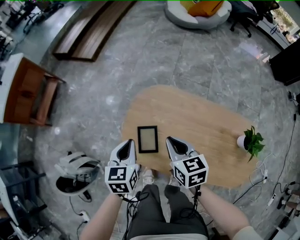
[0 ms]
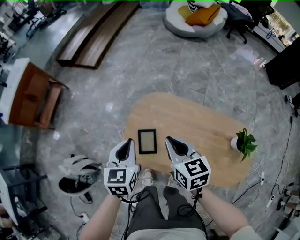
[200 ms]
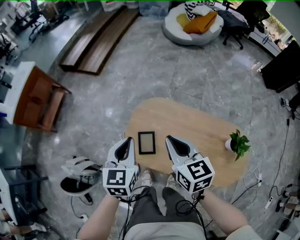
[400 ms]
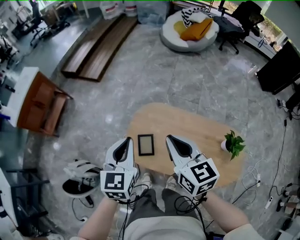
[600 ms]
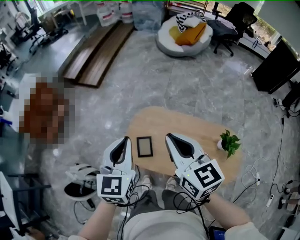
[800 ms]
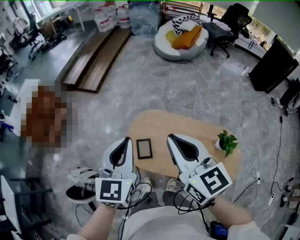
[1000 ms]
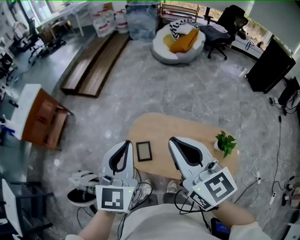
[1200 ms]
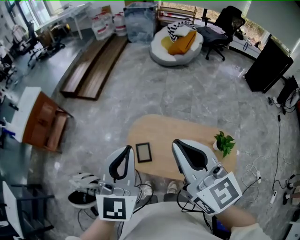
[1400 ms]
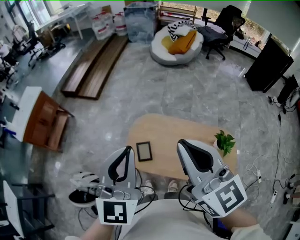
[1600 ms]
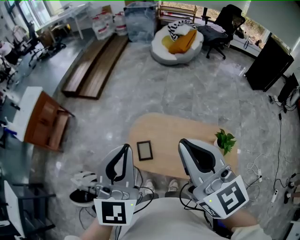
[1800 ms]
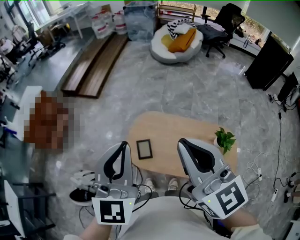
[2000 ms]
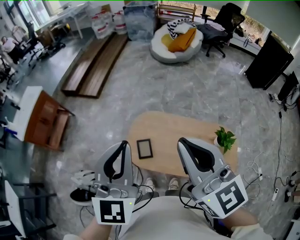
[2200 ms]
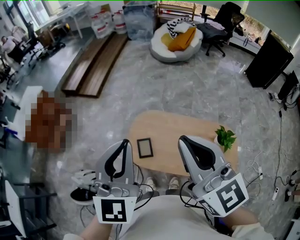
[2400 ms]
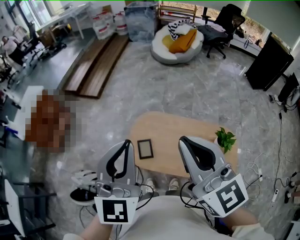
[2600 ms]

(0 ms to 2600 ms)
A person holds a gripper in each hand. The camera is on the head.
0 ms - 1200 ms: The grippers both shift upward by roughly 40 cm. The left gripper tips its fingers upward by some 30 degrees, while the right gripper tilts its fingers approximately 30 degrees upward.
1200 ms - 2600 ms: The two grippers go roughly 5 cm upward.

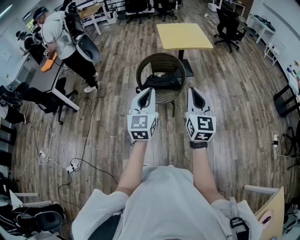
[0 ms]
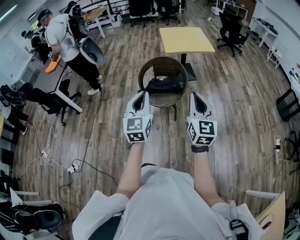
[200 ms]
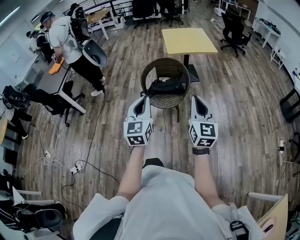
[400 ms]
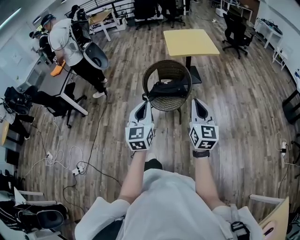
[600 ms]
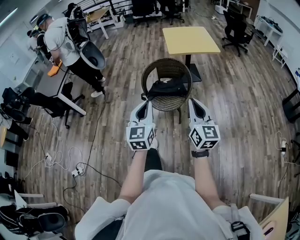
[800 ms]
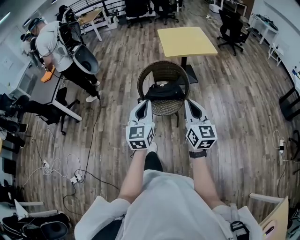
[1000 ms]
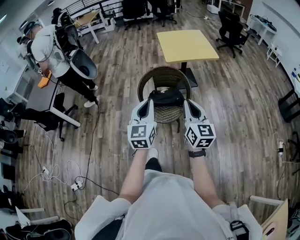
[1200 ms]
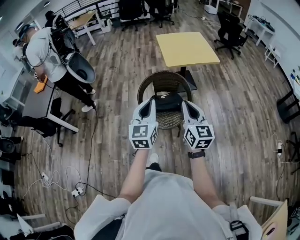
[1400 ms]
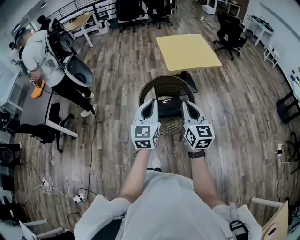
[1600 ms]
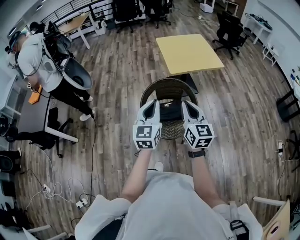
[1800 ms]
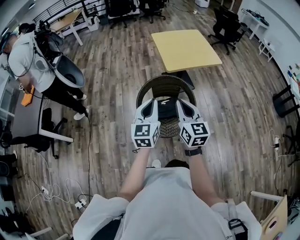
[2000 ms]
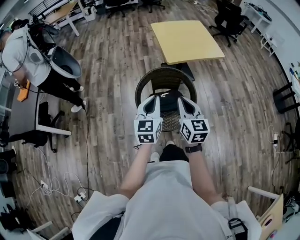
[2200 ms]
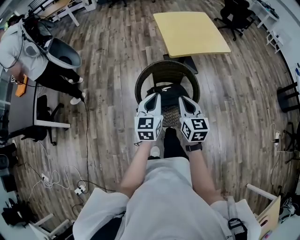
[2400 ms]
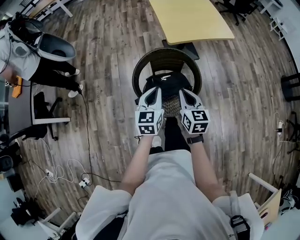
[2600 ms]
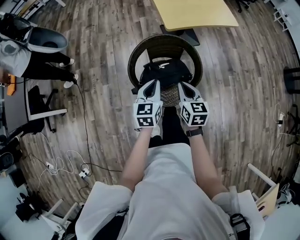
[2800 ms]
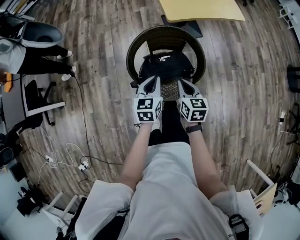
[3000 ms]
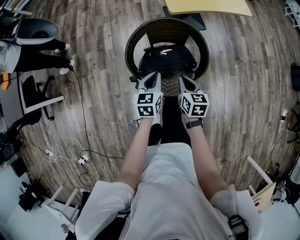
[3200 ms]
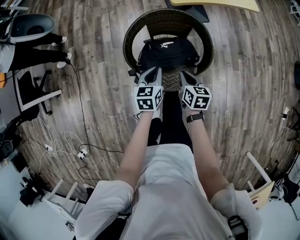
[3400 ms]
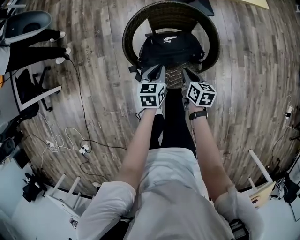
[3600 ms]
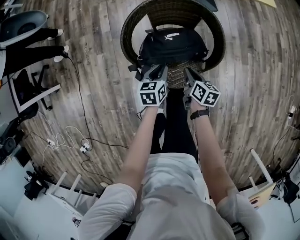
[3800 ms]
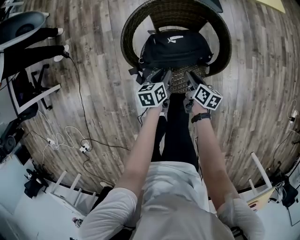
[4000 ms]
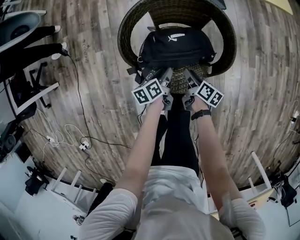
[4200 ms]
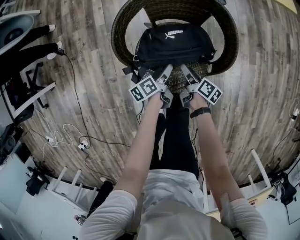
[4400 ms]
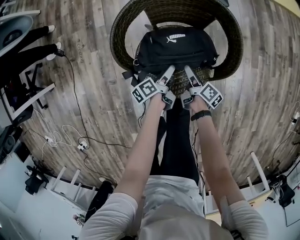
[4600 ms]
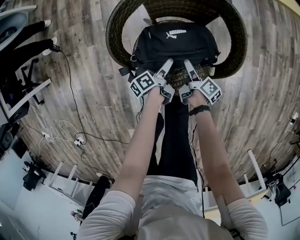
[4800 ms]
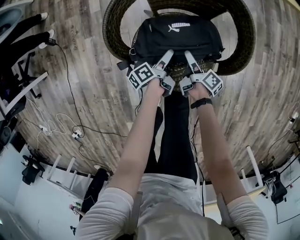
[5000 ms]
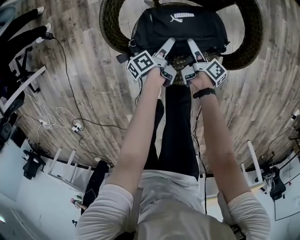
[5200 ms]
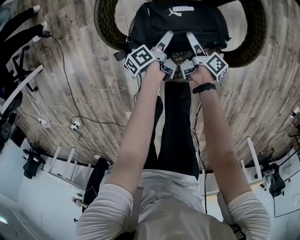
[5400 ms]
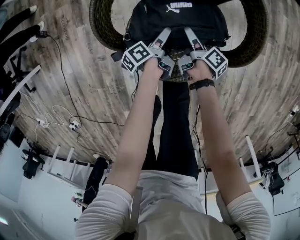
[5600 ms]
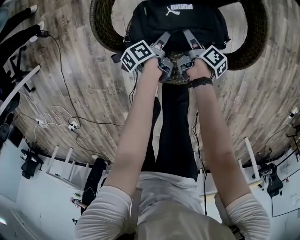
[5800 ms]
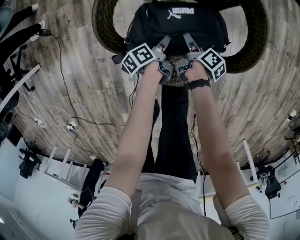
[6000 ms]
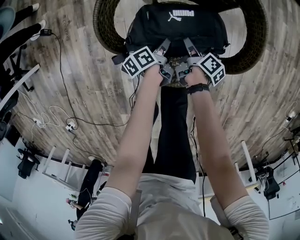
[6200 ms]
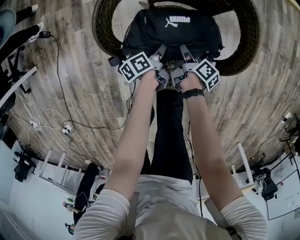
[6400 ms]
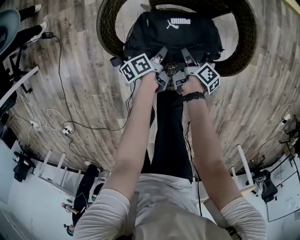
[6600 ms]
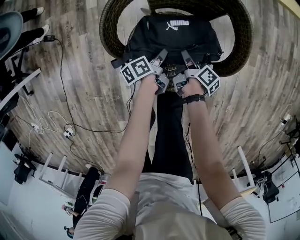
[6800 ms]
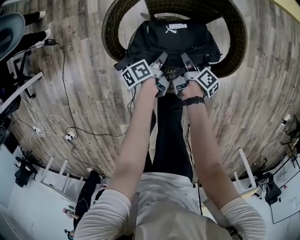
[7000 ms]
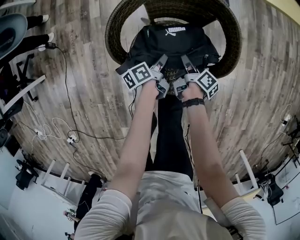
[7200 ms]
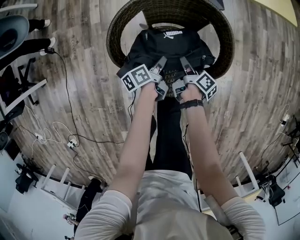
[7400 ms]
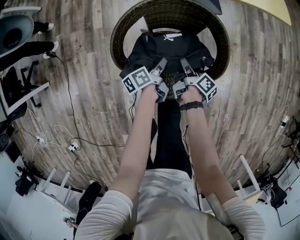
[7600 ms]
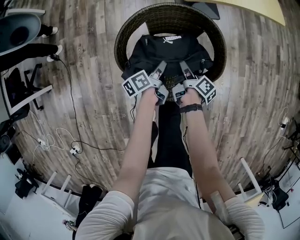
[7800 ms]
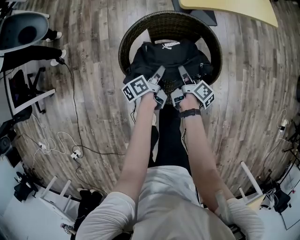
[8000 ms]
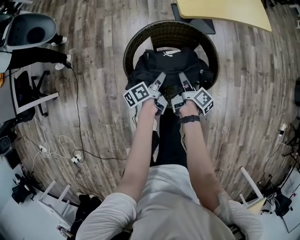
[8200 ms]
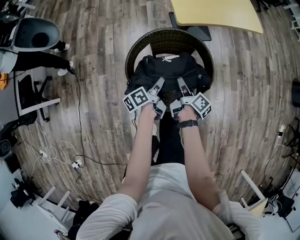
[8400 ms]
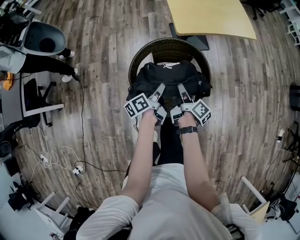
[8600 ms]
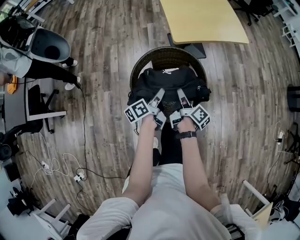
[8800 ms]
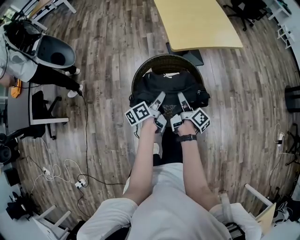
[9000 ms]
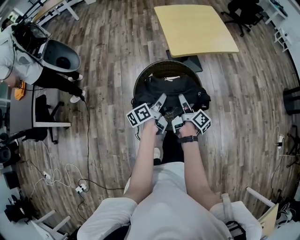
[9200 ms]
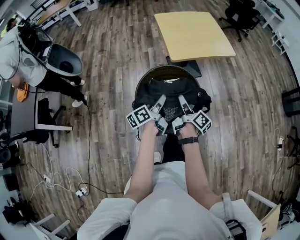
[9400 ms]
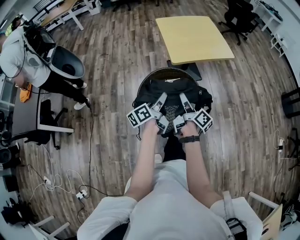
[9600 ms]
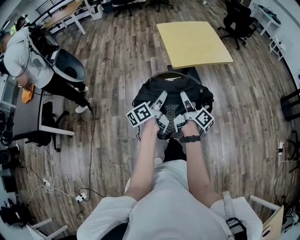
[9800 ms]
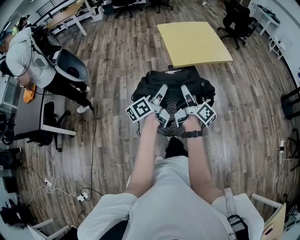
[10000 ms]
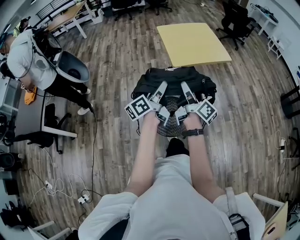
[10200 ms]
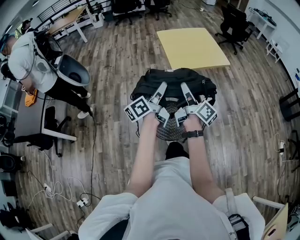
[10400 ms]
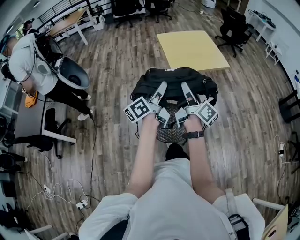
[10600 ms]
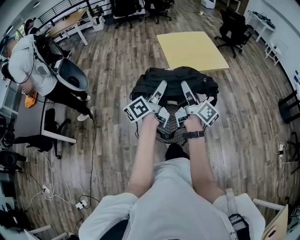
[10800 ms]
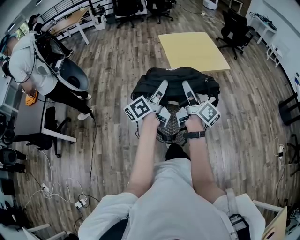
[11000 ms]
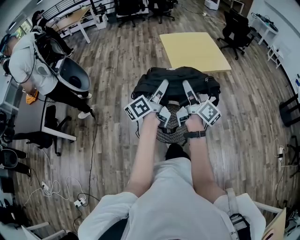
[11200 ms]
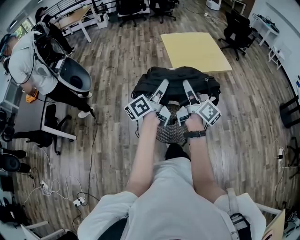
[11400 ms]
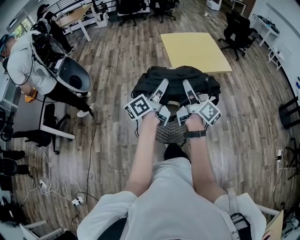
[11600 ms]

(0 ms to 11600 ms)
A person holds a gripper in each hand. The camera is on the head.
0 ms - 1400 ms: The grippers both shift forward by approximately 20 cm.
1400 ms - 2800 ms: The two grippers go about 30 cm downward and forward. The right gripper changes its angle by approximately 30 degrees; the left gripper changes its angle by about 30 degrees.
2800 ms - 4400 ms: Both grippers travel together downward, approximately 40 cm. The left gripper rotates around the line of its fingers by roughly 60 degrees, counterclockwise from behind, and opens. The right gripper twists roughly 60 degrees clockwise, seen from behind, and opens its fingers.
4400 ms - 5800 ms: The left gripper travels downward by some 10 cm; the right gripper goes some 10 cm downward and forward.
5800 ms - 7200 ms: Both grippers move upward, about 10 cm. The left gripper closes its fingers, while the right gripper closes.
7200 ms - 8800 ms: The grippers both shift upward by about 30 cm. The left gripper swivels approximately 20 degrees. The right gripper swivels approximately 20 degrees.
8800 ms - 10200 ms: Both grippers travel together upward, roughly 25 cm. The right gripper rotates about 30 degrees. The left gripper rotates some 30 degrees.
10200 ms - 11600 ms: Both grippers travel together upward, some 5 cm.

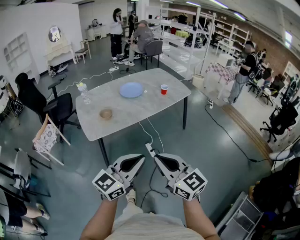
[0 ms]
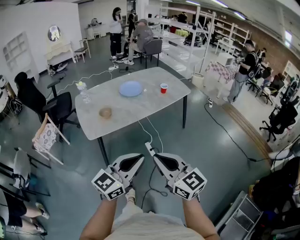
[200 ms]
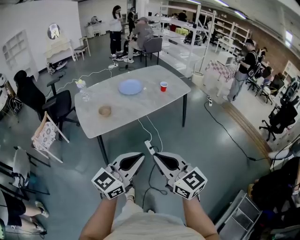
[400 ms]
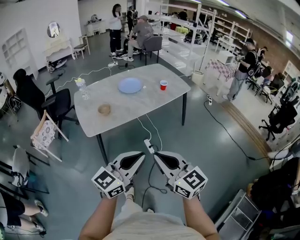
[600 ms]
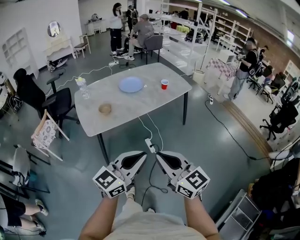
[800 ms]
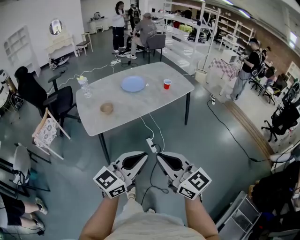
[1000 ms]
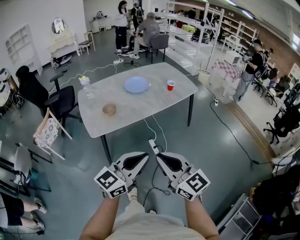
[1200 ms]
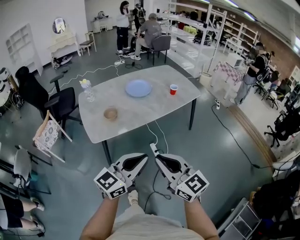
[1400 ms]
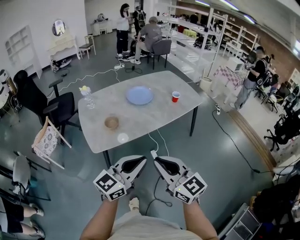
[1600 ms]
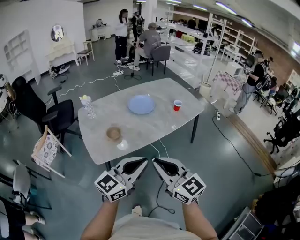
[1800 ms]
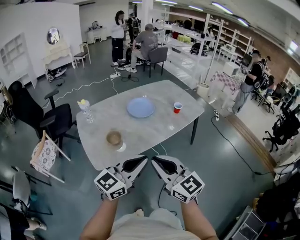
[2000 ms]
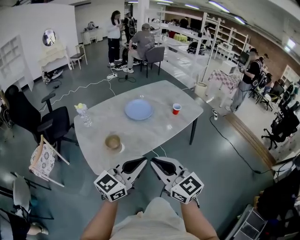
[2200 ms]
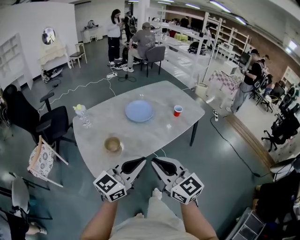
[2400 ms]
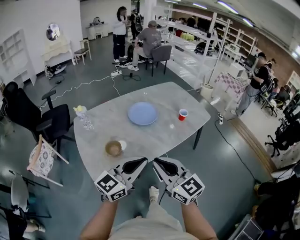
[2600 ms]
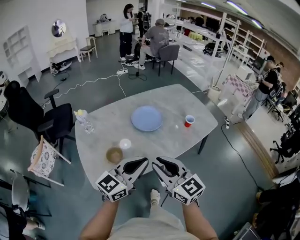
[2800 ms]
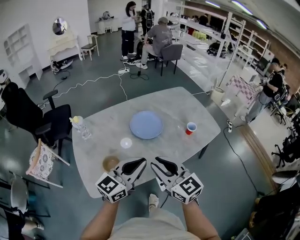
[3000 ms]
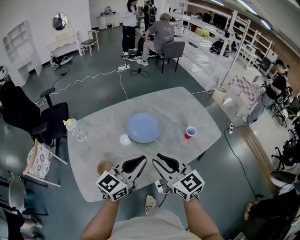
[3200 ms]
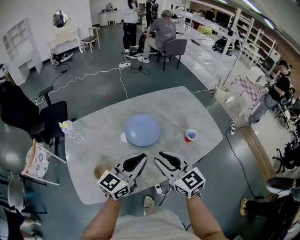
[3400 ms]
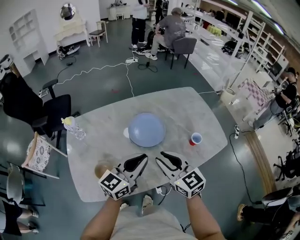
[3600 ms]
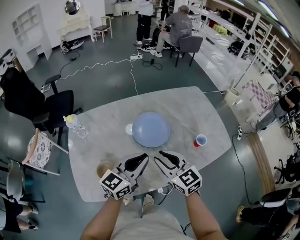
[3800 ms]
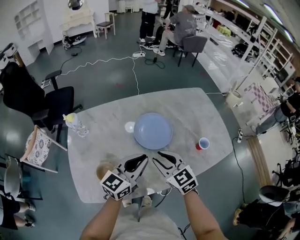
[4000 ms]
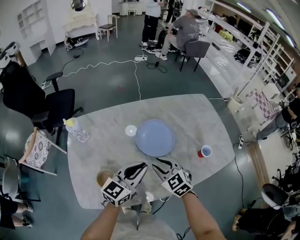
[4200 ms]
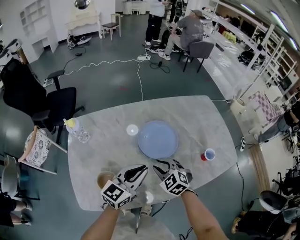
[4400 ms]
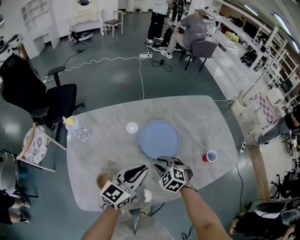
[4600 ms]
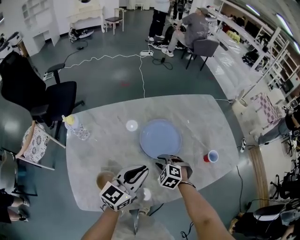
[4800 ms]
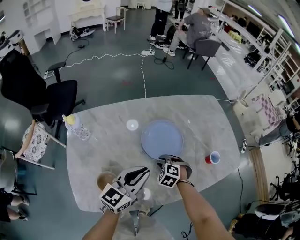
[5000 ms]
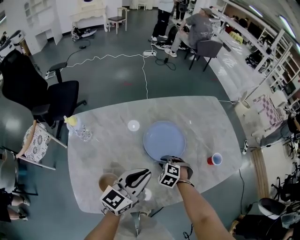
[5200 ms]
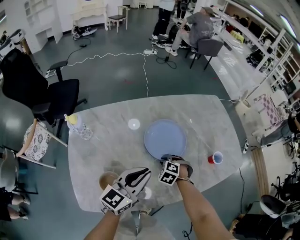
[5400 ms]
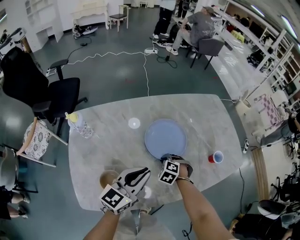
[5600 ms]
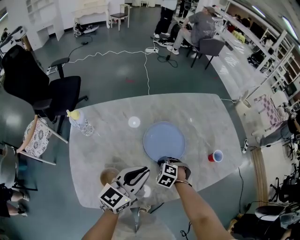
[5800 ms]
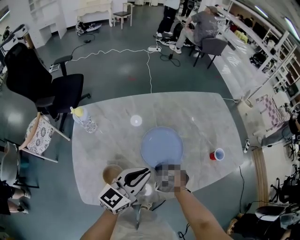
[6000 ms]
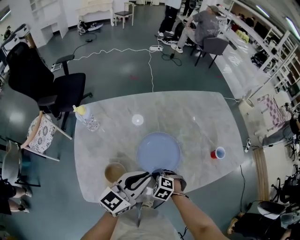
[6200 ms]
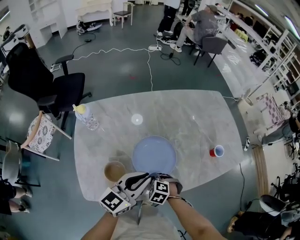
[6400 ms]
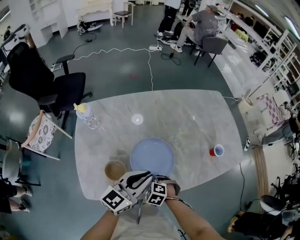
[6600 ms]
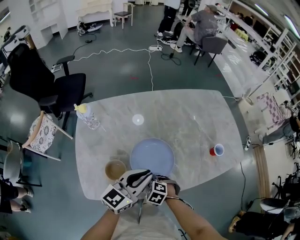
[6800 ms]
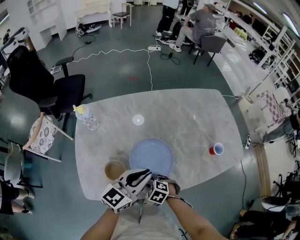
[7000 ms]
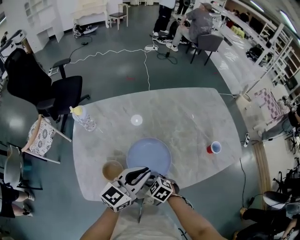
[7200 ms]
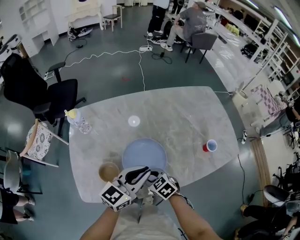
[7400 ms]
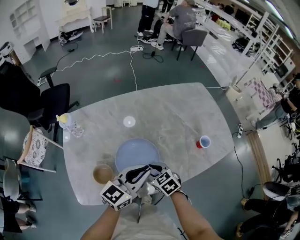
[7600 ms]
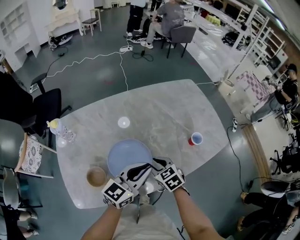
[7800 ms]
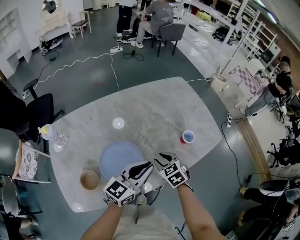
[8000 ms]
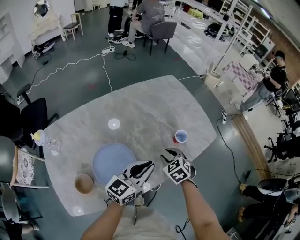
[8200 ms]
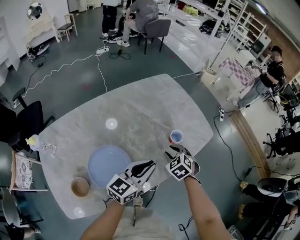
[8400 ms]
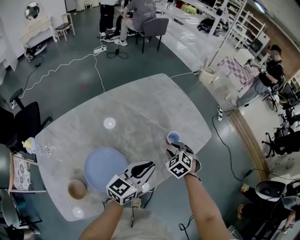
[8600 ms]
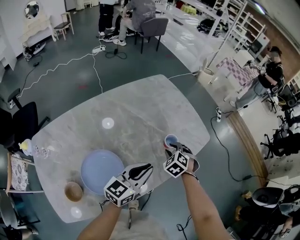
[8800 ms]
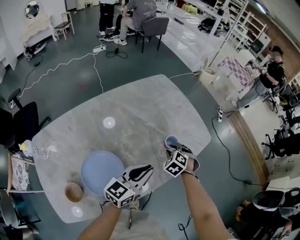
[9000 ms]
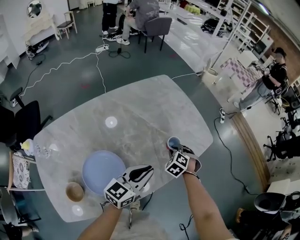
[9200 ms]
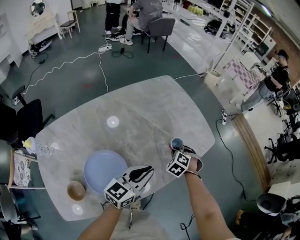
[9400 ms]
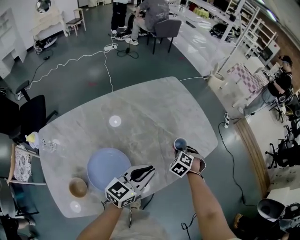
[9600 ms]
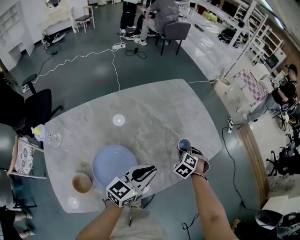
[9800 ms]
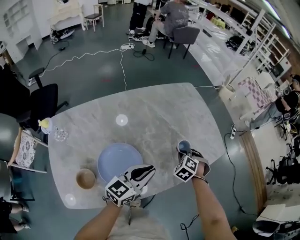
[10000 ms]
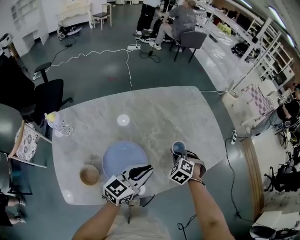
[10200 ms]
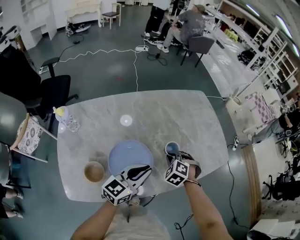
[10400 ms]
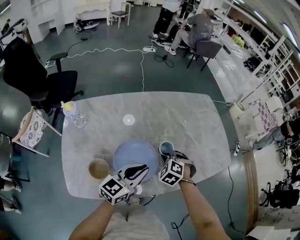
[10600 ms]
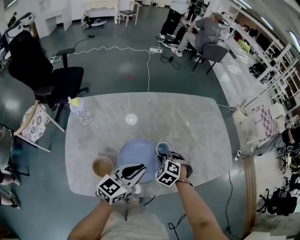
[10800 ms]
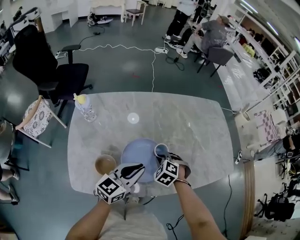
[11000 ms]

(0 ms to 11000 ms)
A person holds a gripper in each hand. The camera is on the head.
0 ms - 1600 ms: Both grippers travel together forward and to the left, approximately 15 cm.
1600 ms - 3200 ms: The pair of grippers is taken forward, approximately 40 cm. The right gripper opens.
3200 ms - 4800 ms: The left gripper travels forward, downward and to the left by roughly 15 cm. Meanwhile the right gripper shifts some 35 cm downward and forward, and points its fingers some 50 degrees further downward.
4800 ms - 6200 ms: The left gripper heads backward, covering some 5 cm; the right gripper travels backward by some 10 cm, and closes.
6200 ms - 7800 ms: The left gripper heads to the right, covering some 10 cm, while the right gripper shifts approximately 15 cm to the right and upward, rotates roughly 50 degrees, and opens its fingers.
7800 ms - 9400 ms: The right gripper shifts by approximately 30 cm, swivels about 40 degrees, and closes its fingers, while the left gripper shifts by roughly 15 cm.
9400 ms - 11000 ms: The left gripper shifts by some 25 cm, and rotates roughly 20 degrees. The right gripper shifts by approximately 30 cm, and changes its angle by some 30 degrees.
